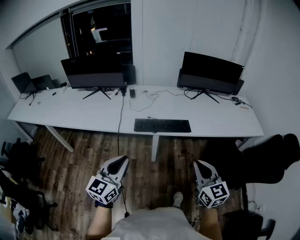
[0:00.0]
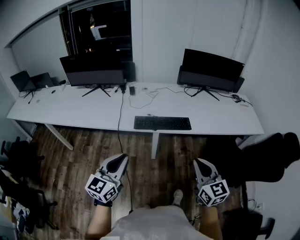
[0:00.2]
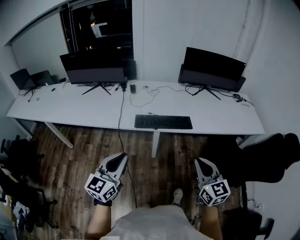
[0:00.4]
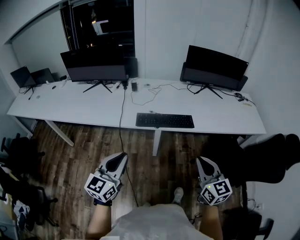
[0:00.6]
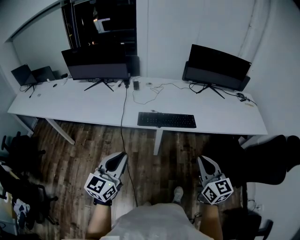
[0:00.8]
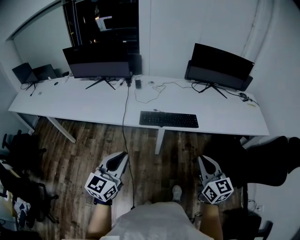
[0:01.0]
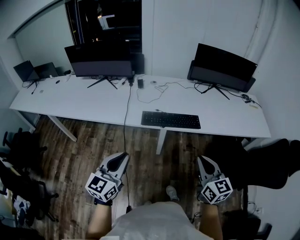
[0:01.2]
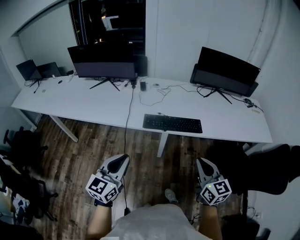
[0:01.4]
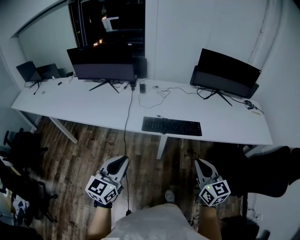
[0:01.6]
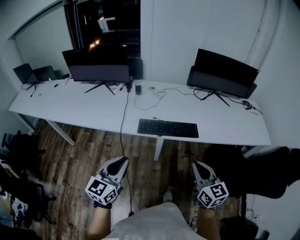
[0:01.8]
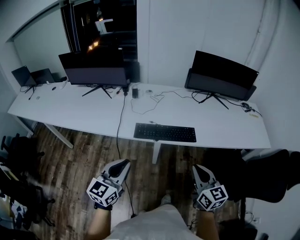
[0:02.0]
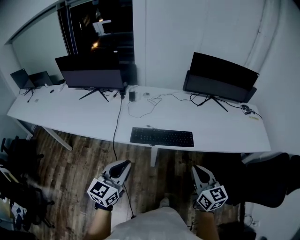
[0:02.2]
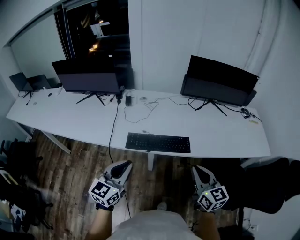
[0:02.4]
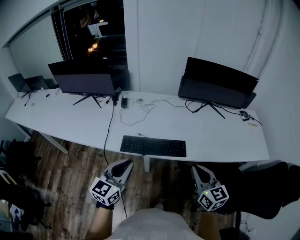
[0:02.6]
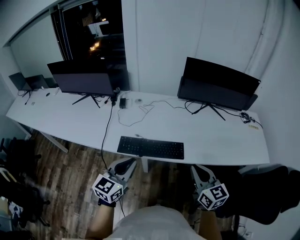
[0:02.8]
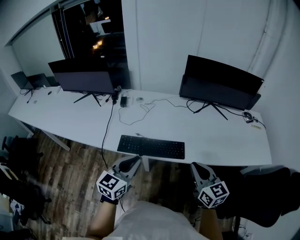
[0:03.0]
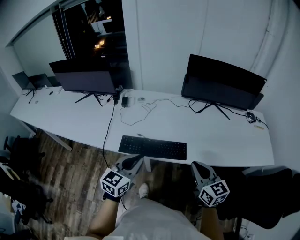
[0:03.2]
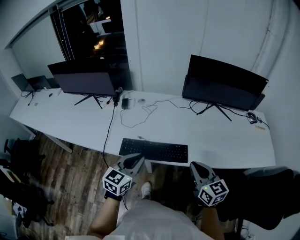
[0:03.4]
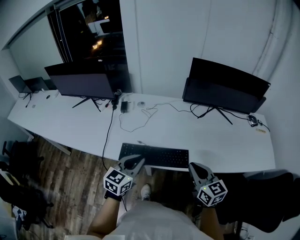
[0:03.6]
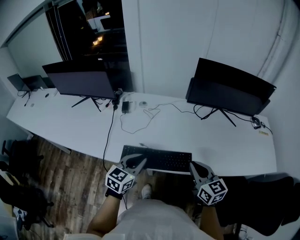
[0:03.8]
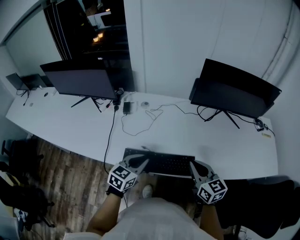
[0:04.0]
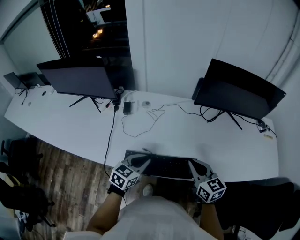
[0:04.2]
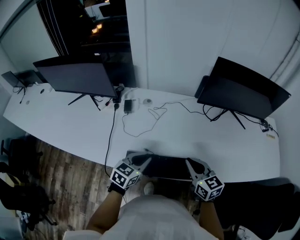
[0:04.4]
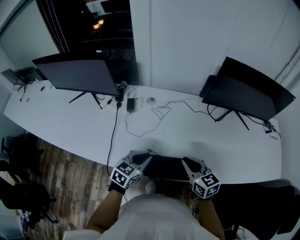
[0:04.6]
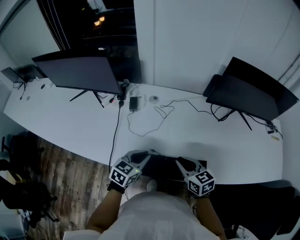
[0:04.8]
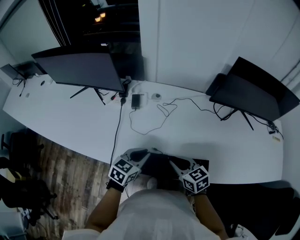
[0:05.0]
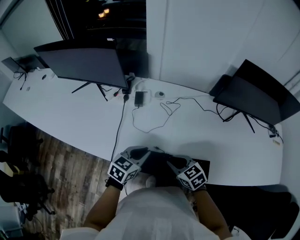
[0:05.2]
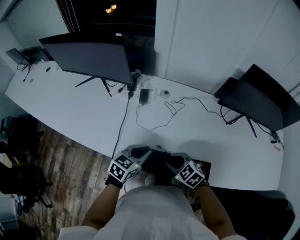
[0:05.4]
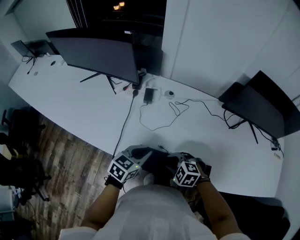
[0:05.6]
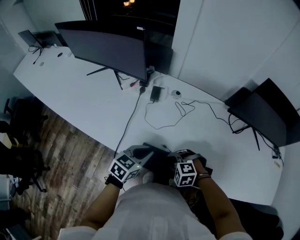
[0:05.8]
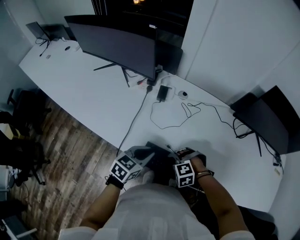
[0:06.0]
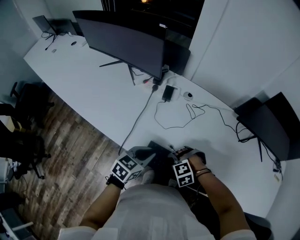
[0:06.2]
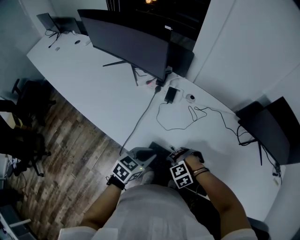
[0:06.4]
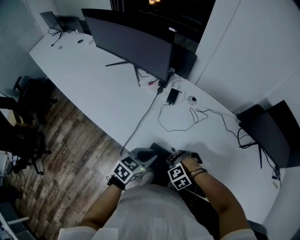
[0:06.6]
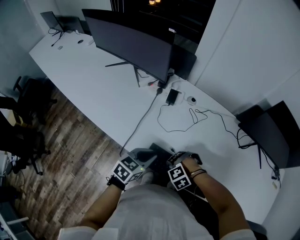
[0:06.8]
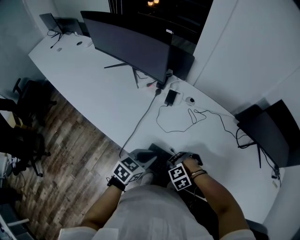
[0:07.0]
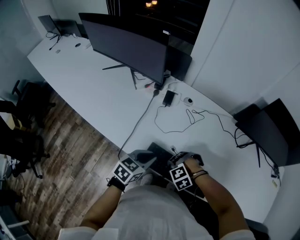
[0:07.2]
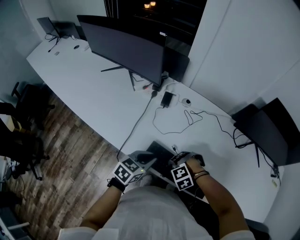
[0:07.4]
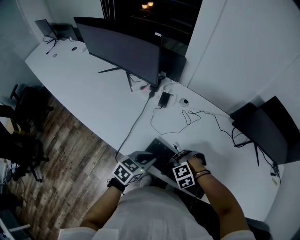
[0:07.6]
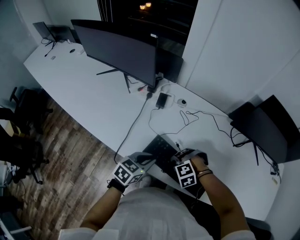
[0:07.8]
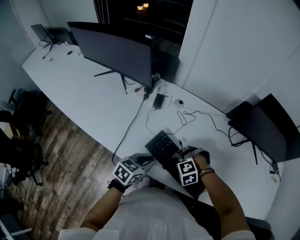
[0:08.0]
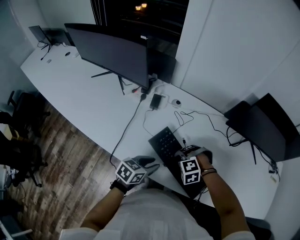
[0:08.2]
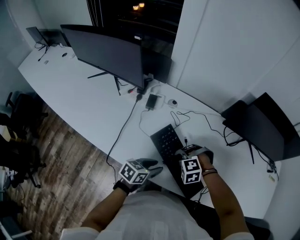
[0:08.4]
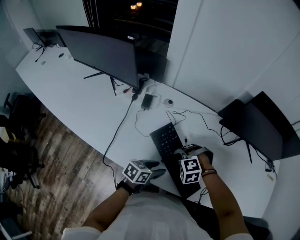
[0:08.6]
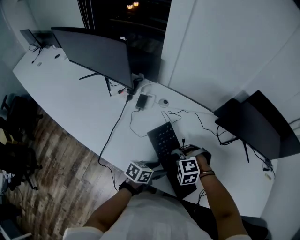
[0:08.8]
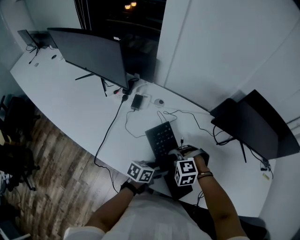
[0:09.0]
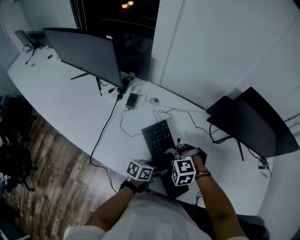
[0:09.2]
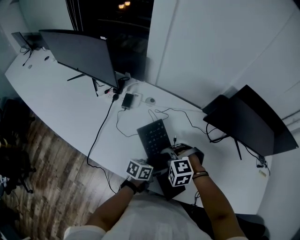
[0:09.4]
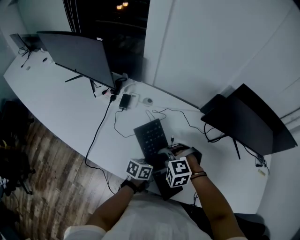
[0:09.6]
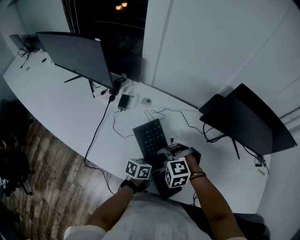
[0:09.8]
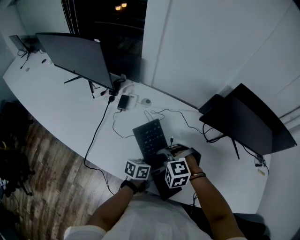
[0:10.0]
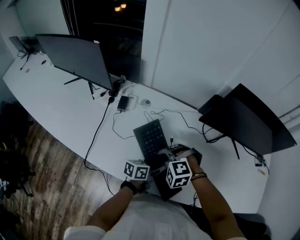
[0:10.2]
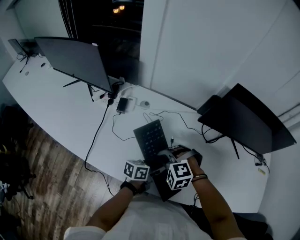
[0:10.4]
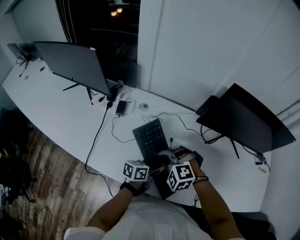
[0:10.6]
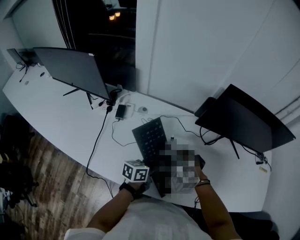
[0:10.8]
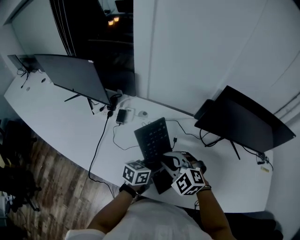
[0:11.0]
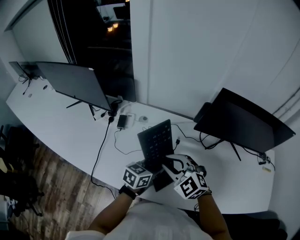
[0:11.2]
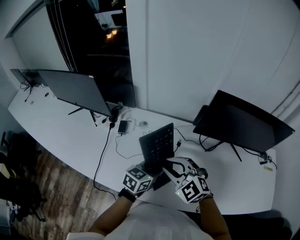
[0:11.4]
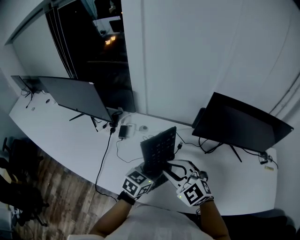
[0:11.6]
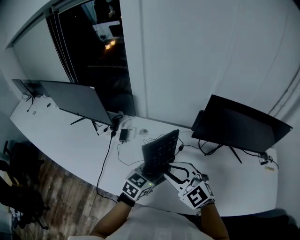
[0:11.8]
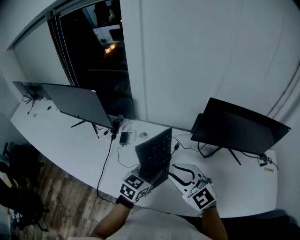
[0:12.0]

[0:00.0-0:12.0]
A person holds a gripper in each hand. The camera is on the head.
0.0 to 1.6 s: The right gripper heads forward, covering some 10 cm. Meanwhile the left gripper is displaced forward by roughly 5 cm.
1.6 to 3.0 s: The two grippers go approximately 25 cm forward and to the right.
3.0 to 4.4 s: The left gripper is displaced forward and downward by some 25 cm, and changes its angle by some 20 degrees; the right gripper is displaced forward, to the left and downward by some 25 cm.
4.4 to 6.0 s: The right gripper shifts approximately 20 cm downward, angles its fingers downward, by some 50 degrees, and opens up; the left gripper changes place by approximately 10 cm.
6.0 to 7.6 s: The right gripper closes its fingers.
7.6 to 9.0 s: The right gripper moves some 15 cm, and changes its angle by approximately 20 degrees. The left gripper moves roughly 20 cm, rotates about 30 degrees, and opens.
9.0 to 10.4 s: The left gripper moves to the right, approximately 5 cm, and closes its fingers.
10.4 to 12.0 s: The two grippers go approximately 20 cm upward. The right gripper tilts its fingers roughly 50 degrees upward, and opens up; the left gripper rotates around the line of its fingers by approximately 50 degrees, clockwise from behind.

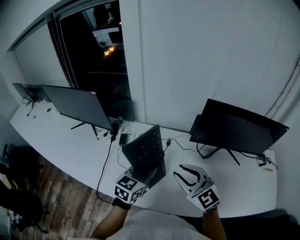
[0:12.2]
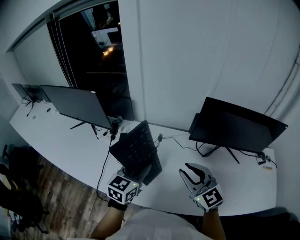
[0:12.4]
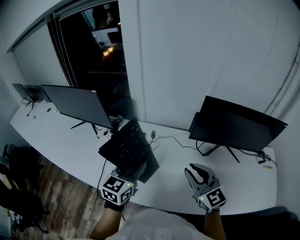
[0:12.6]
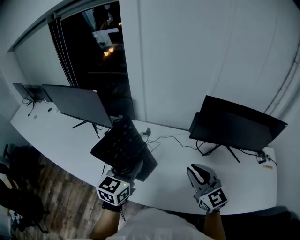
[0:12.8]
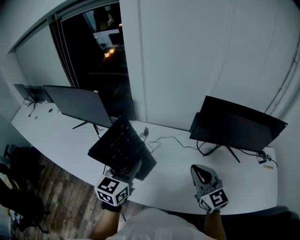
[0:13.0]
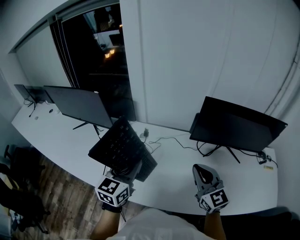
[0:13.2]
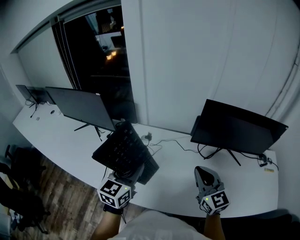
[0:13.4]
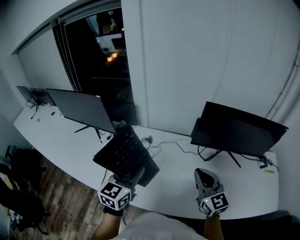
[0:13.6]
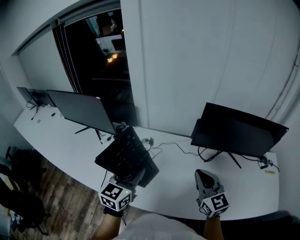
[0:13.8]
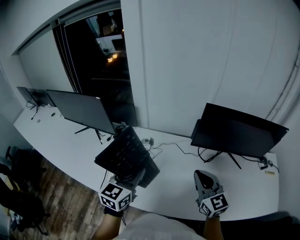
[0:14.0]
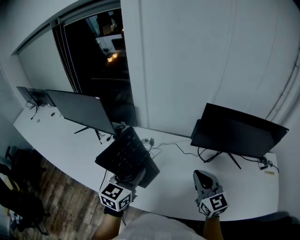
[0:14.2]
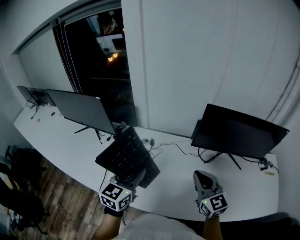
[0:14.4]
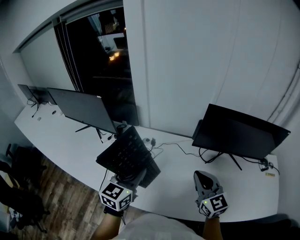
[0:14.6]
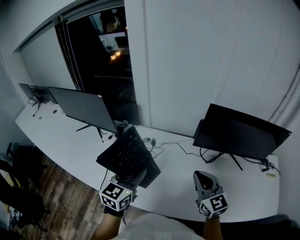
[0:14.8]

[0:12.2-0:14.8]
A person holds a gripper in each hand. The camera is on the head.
12.2 to 13.4 s: The right gripper goes approximately 10 cm to the right, rotates about 20 degrees, and closes up. The left gripper moves upward and to the left, some 10 cm.
13.4 to 14.8 s: The grippers move only a little.

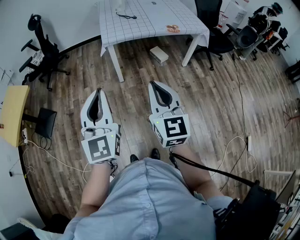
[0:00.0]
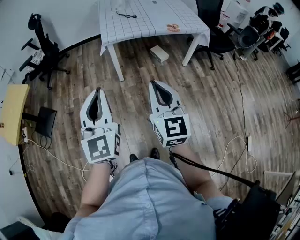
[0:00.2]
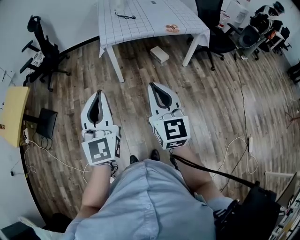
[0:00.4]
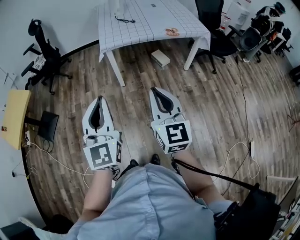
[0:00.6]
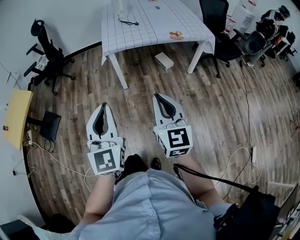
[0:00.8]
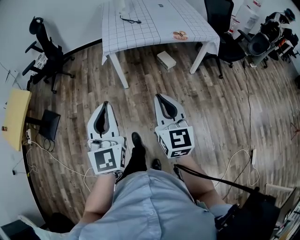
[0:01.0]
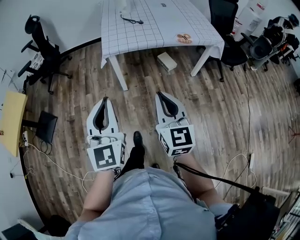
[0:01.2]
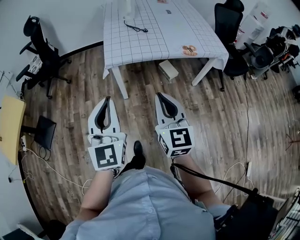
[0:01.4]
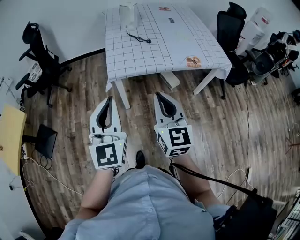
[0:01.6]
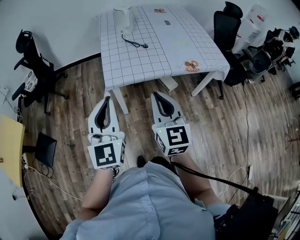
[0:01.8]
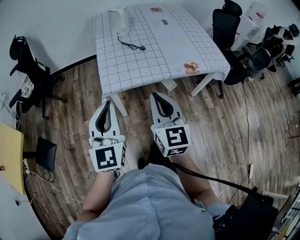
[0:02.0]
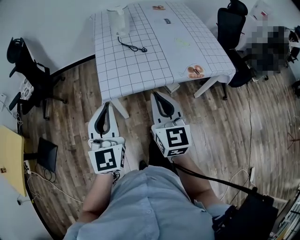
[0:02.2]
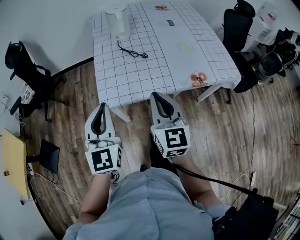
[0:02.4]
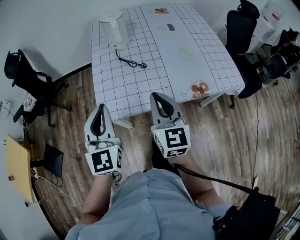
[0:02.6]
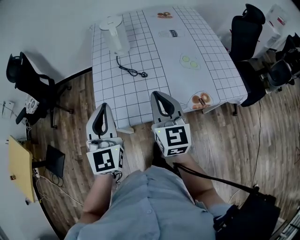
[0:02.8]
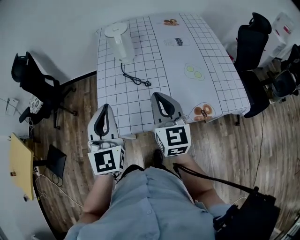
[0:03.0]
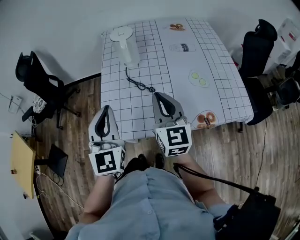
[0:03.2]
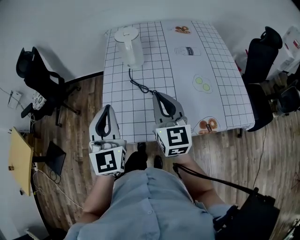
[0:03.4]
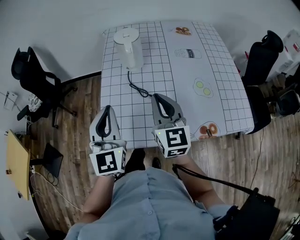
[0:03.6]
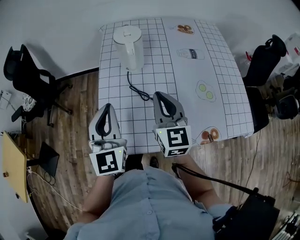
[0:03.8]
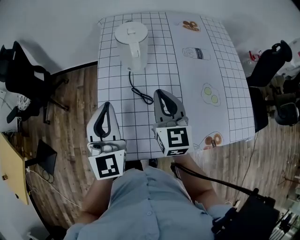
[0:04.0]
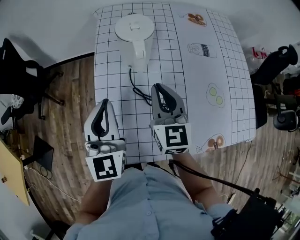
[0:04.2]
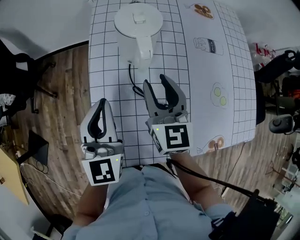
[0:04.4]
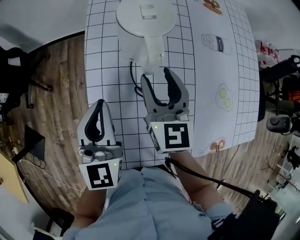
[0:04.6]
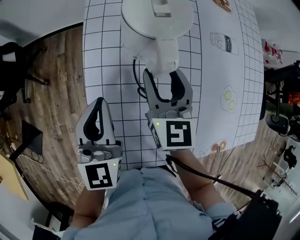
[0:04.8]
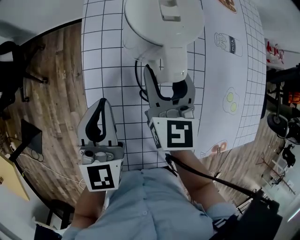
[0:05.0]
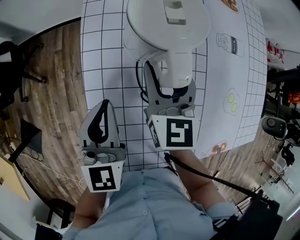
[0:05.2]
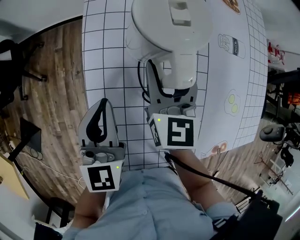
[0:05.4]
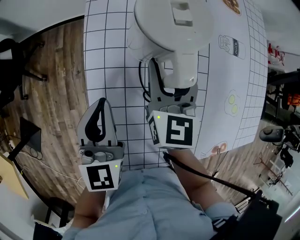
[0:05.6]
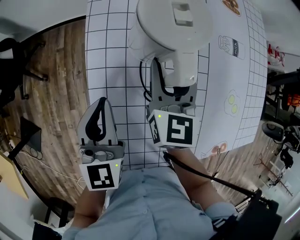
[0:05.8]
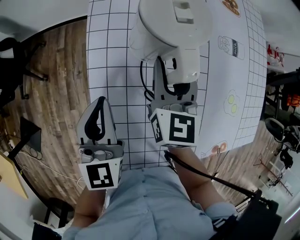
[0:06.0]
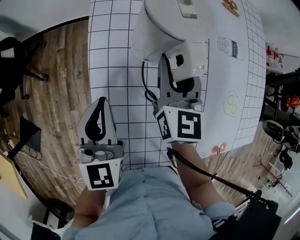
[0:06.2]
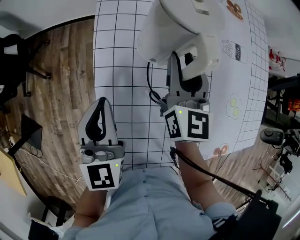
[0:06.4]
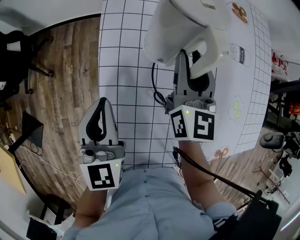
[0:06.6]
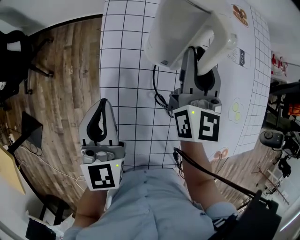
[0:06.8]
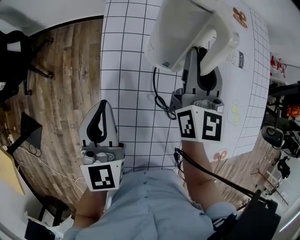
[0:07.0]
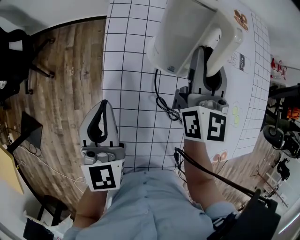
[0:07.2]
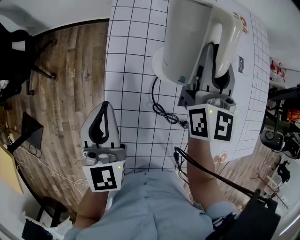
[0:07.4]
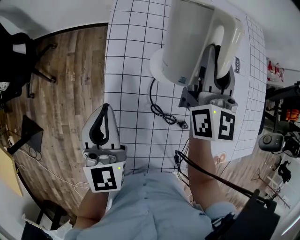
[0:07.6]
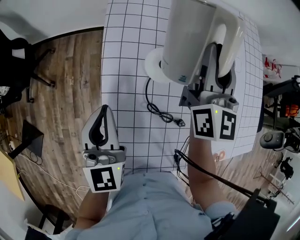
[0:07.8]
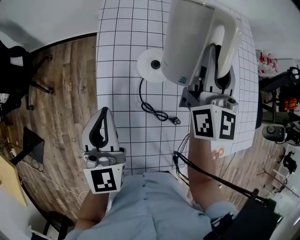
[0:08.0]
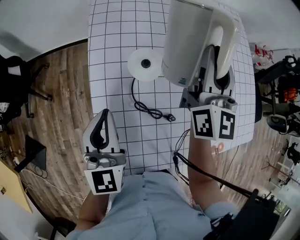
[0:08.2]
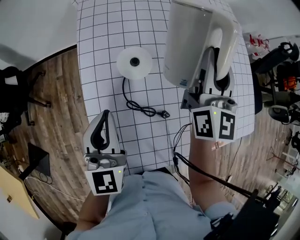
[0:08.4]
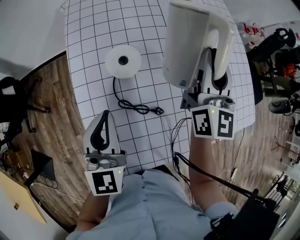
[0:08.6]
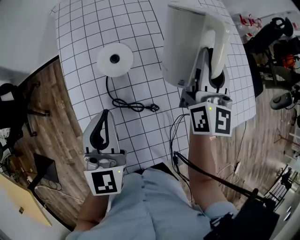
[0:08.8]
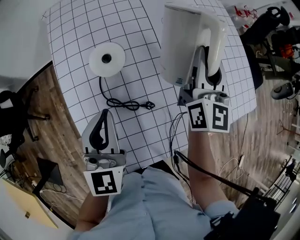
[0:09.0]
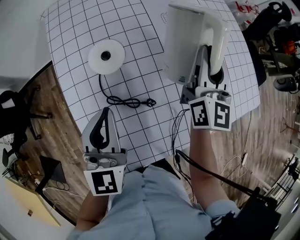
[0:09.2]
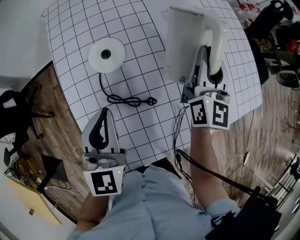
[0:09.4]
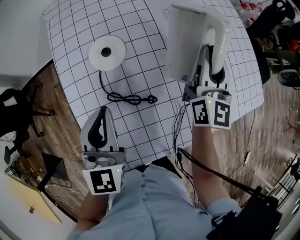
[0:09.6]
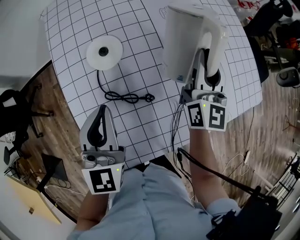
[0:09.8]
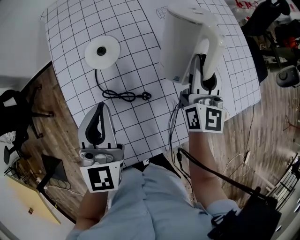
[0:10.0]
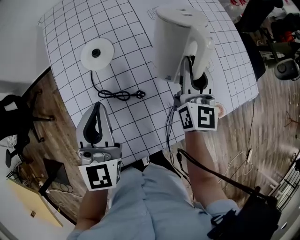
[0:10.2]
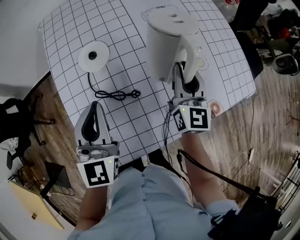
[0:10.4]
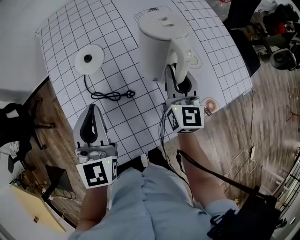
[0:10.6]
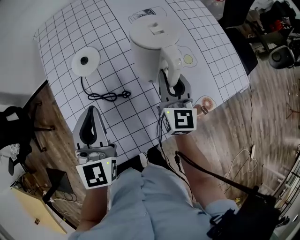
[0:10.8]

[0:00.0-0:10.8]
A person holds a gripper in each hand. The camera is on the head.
0.0 to 1.6 s: Both grippers travel together forward, some 30 cm.
1.6 to 3.0 s: The two grippers go about 35 cm forward.
3.0 to 4.6 s: The left gripper shifts roughly 30 cm forward and downward, while the right gripper moves forward, about 30 cm, and opens.
4.6 to 6.2 s: The left gripper shifts by approximately 5 cm. Meanwhile the right gripper moves forward, roughly 10 cm.
6.2 to 7.8 s: The right gripper travels upward and to the right by about 15 cm, and rotates approximately 20 degrees.
7.8 to 9.2 s: The grippers both shift to the right by approximately 20 cm. The left gripper changes its angle by approximately 20 degrees. Meanwhile the right gripper changes its angle by approximately 20 degrees.
9.2 to 10.8 s: The right gripper heads backward and downward, covering approximately 15 cm. Meanwhile the left gripper is displaced to the right by some 5 cm.
